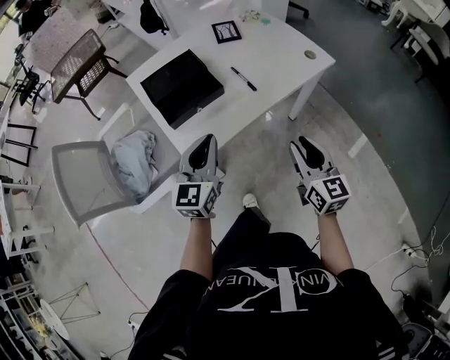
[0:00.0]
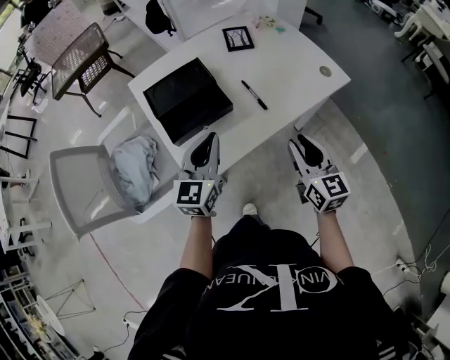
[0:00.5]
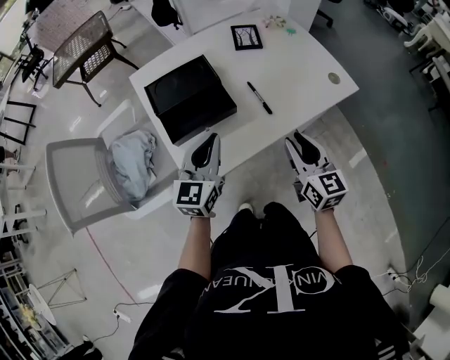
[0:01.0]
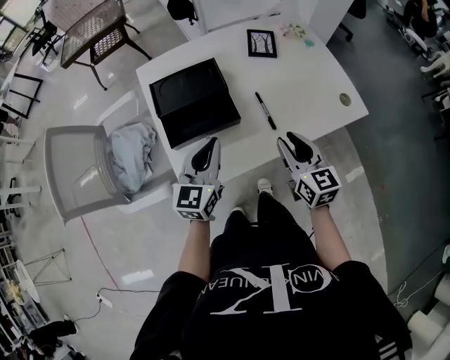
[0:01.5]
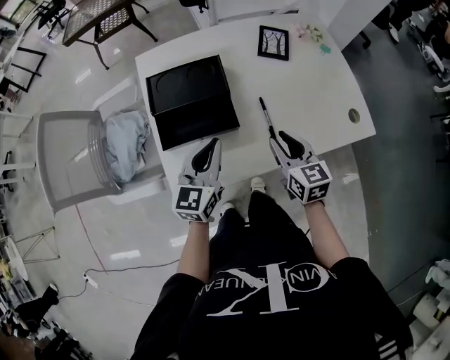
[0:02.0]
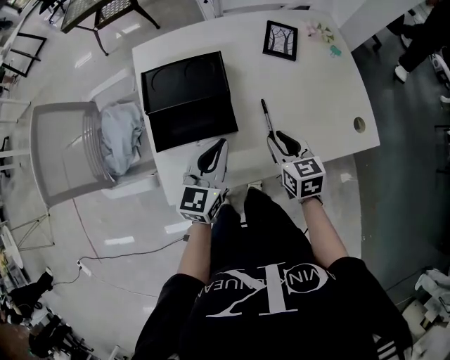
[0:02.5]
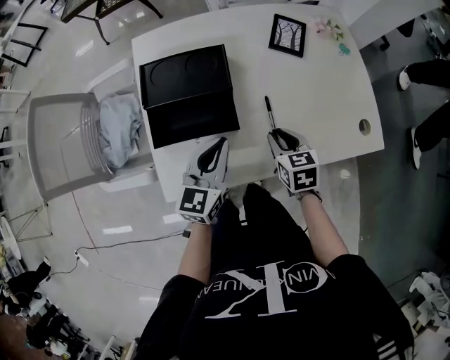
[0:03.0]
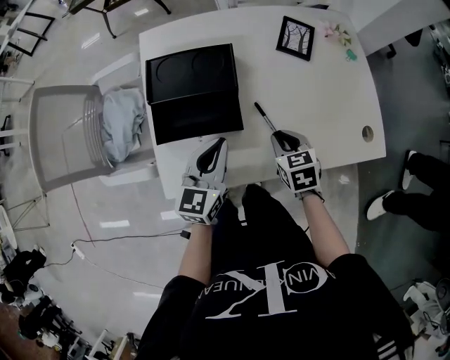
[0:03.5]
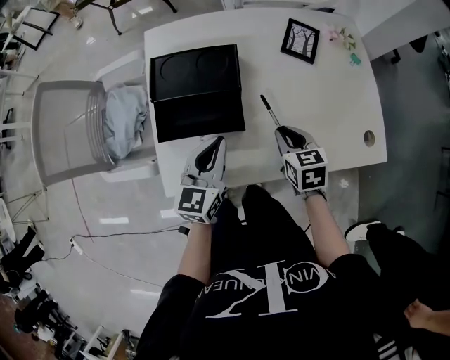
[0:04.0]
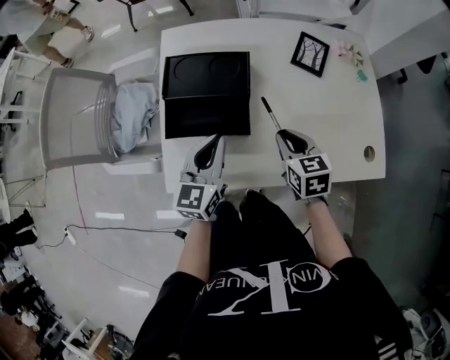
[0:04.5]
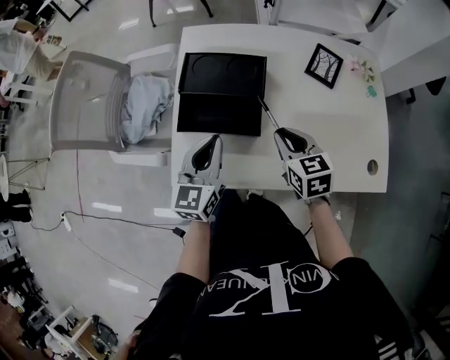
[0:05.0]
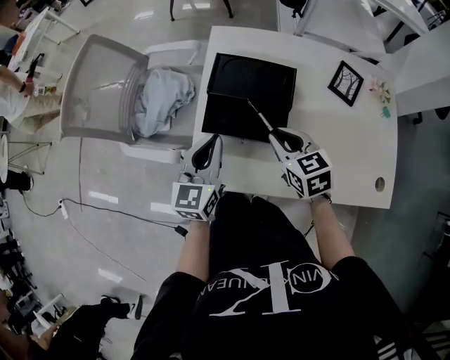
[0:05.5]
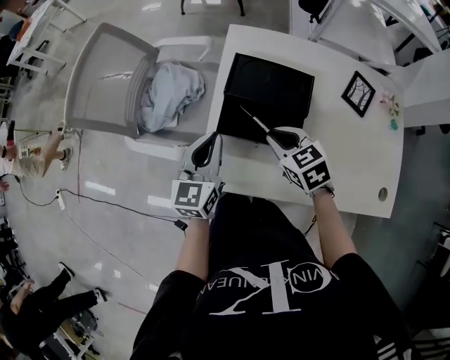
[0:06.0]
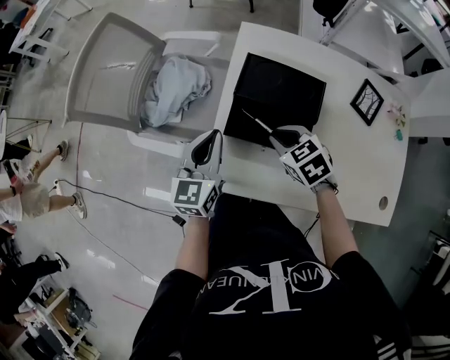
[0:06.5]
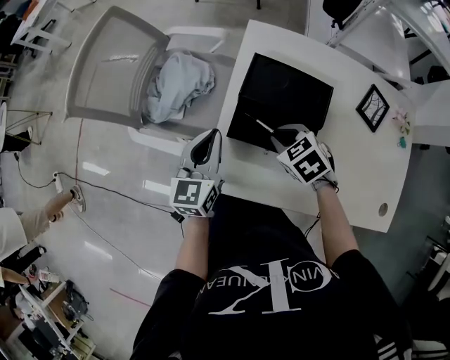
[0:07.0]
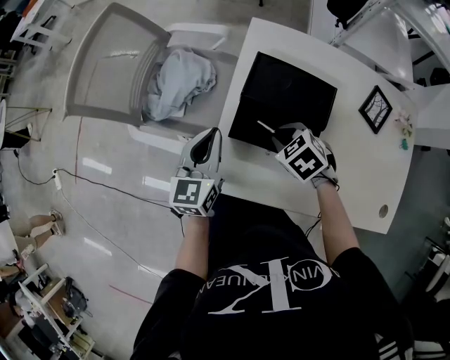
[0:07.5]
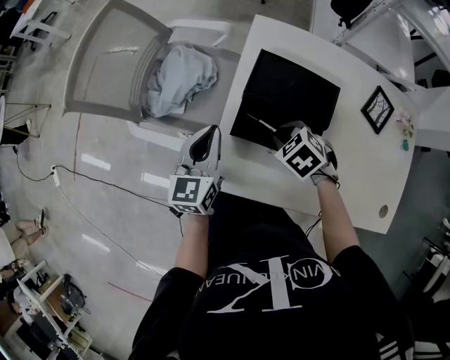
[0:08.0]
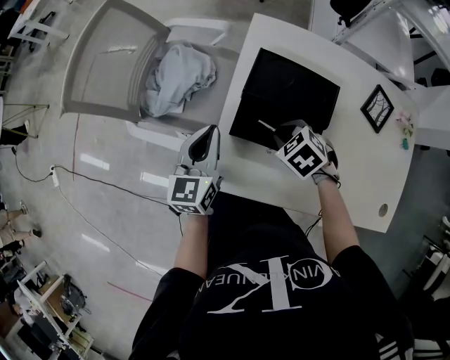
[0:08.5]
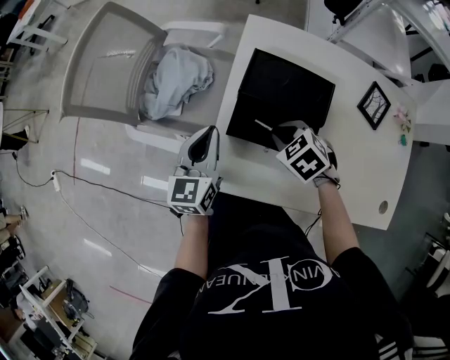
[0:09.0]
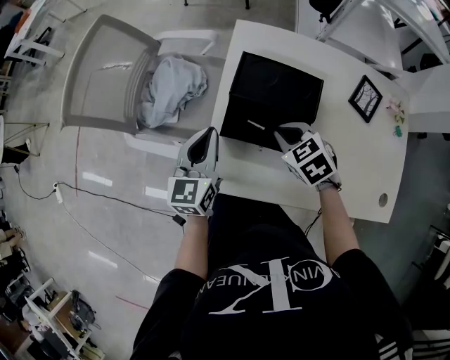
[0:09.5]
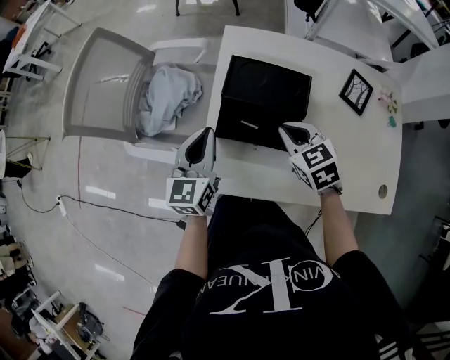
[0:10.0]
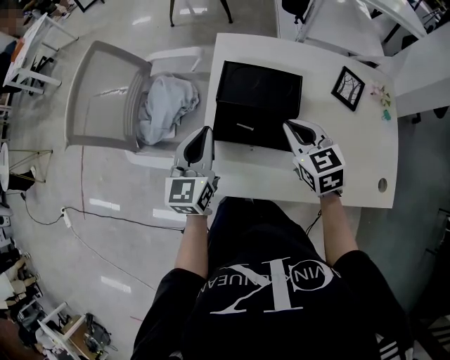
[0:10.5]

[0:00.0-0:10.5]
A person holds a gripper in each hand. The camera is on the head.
0.0 to 2.0 s: The left gripper shifts approximately 15 cm forward, while the right gripper travels forward by approximately 25 cm, and turns by about 30 degrees.
2.0 to 4.0 s: The right gripper heads downward and forward, covering approximately 10 cm, and rotates about 20 degrees.
4.0 to 6.5 s: The right gripper shifts by roughly 20 cm, and changes its angle by some 50 degrees; the left gripper changes place by some 20 cm, and turns by roughly 20 degrees.
6.5 to 8.5 s: The grippers stay close to where they were, moving slightly.
8.5 to 10.5 s: The right gripper travels upward and to the right by some 15 cm, and angles its fingers upward, by roughly 30 degrees. Meanwhile the left gripper moves upward, some 5 cm.

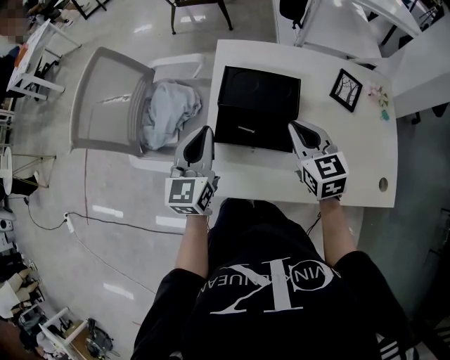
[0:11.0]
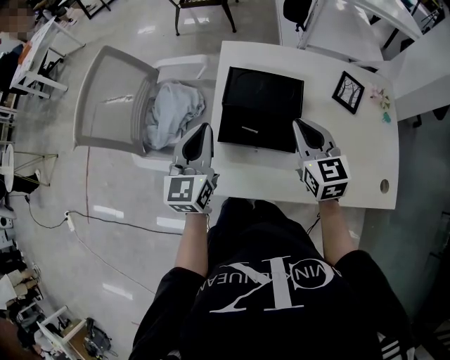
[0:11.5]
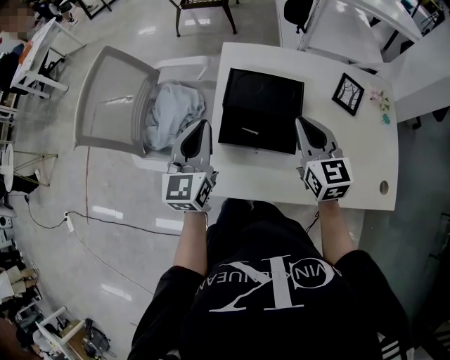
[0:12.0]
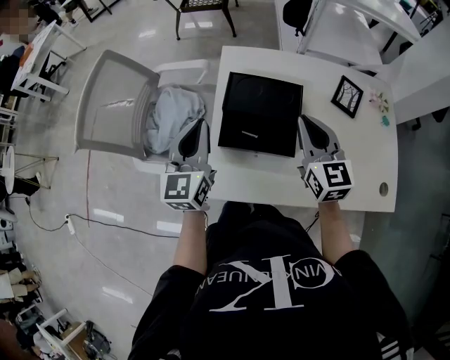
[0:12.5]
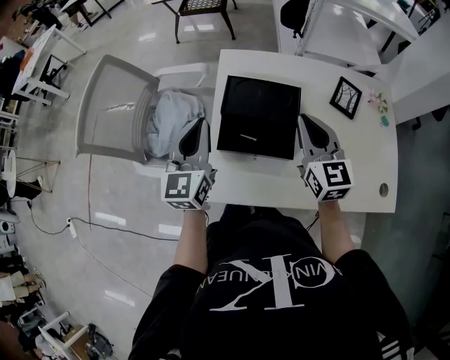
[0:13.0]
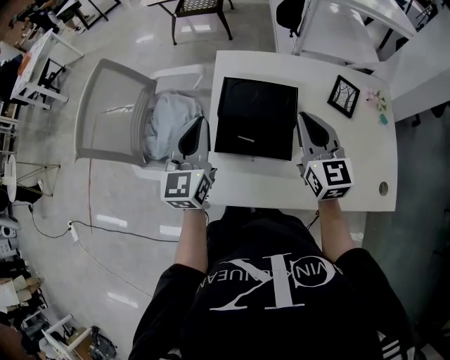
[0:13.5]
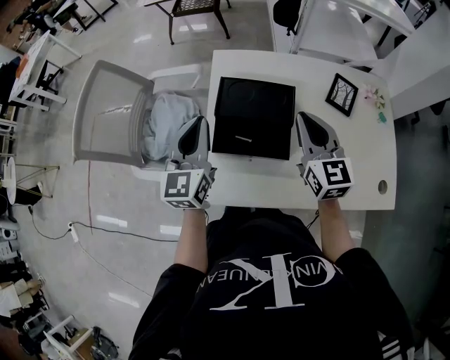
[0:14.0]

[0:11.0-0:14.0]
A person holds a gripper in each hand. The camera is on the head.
11.0 to 12.5 s: The right gripper shifts by approximately 5 cm.
12.5 to 14.0 s: There are only small adjustments of the grippers.

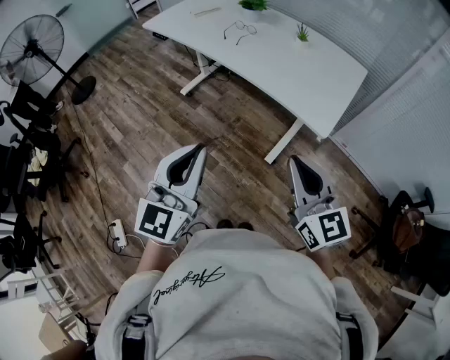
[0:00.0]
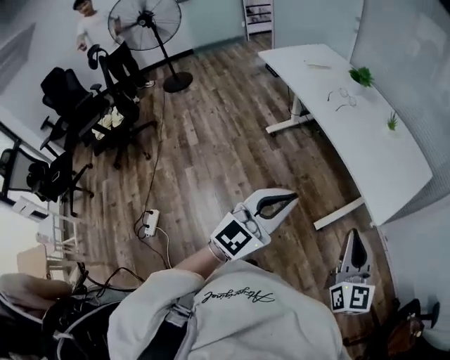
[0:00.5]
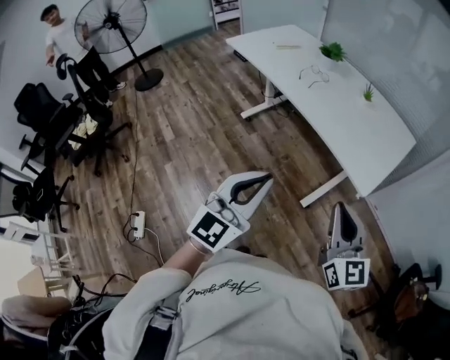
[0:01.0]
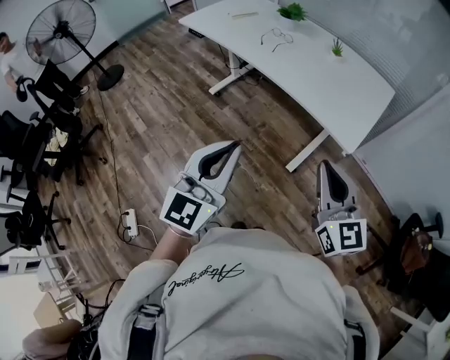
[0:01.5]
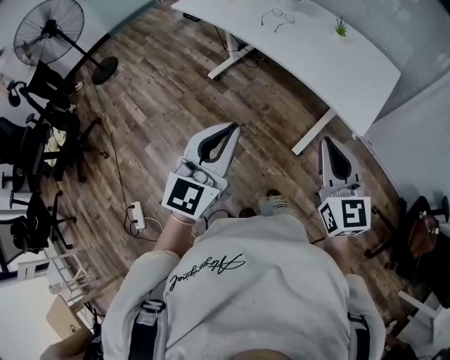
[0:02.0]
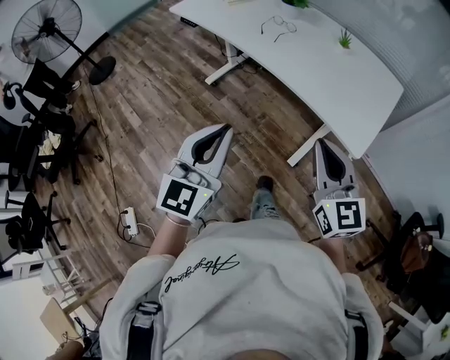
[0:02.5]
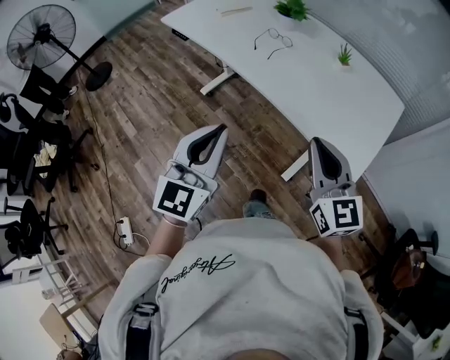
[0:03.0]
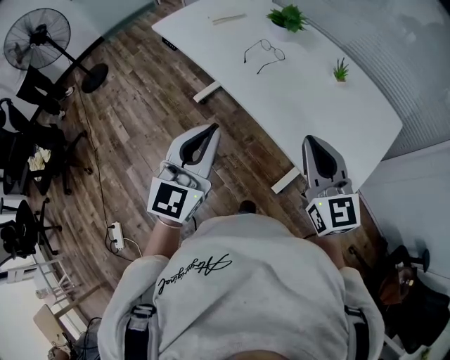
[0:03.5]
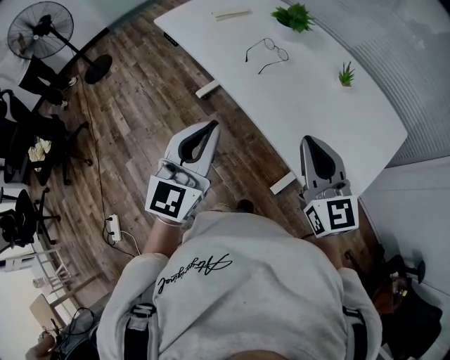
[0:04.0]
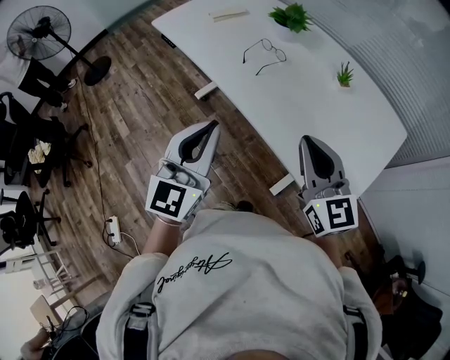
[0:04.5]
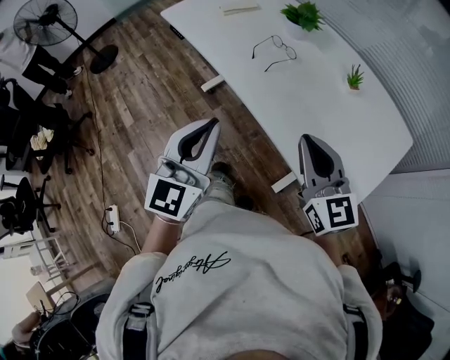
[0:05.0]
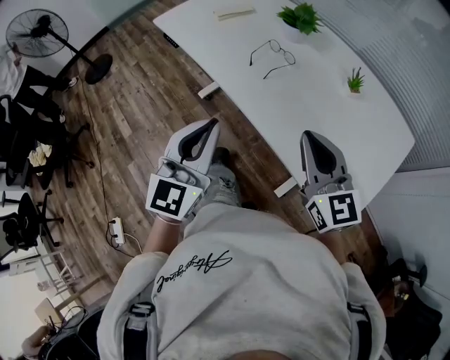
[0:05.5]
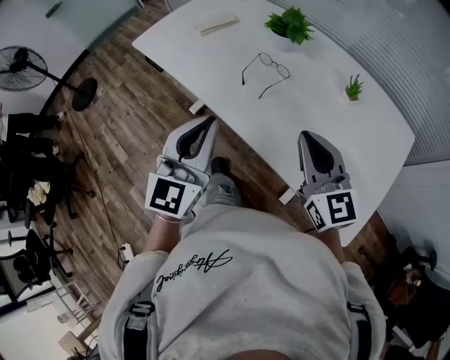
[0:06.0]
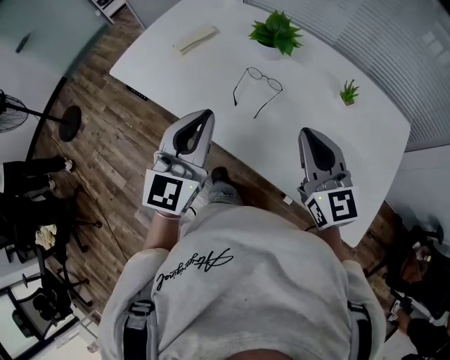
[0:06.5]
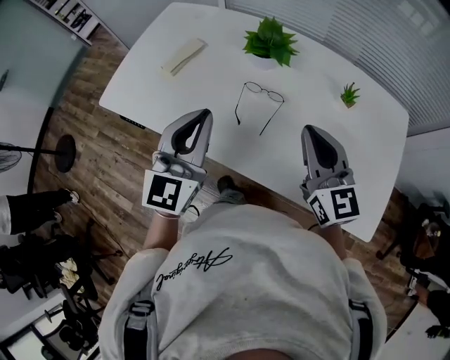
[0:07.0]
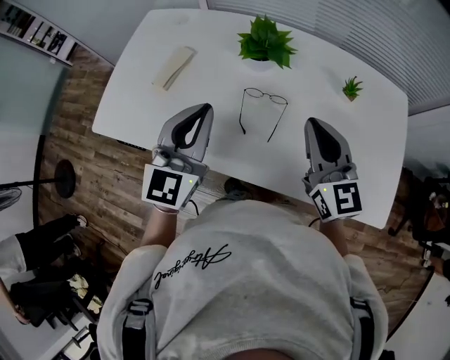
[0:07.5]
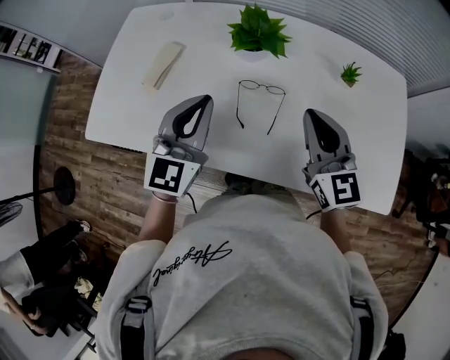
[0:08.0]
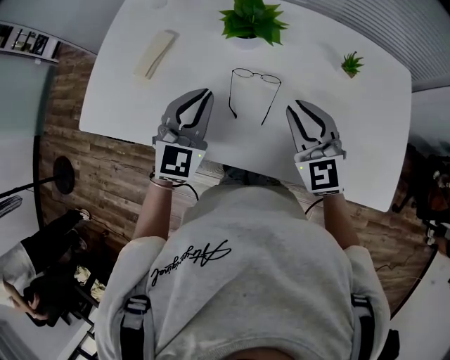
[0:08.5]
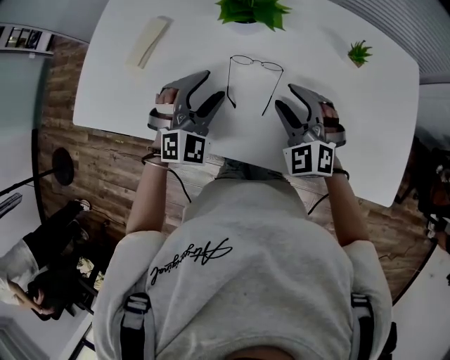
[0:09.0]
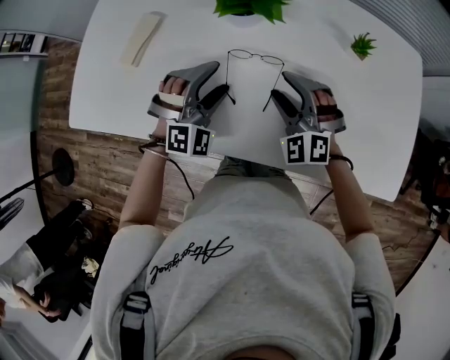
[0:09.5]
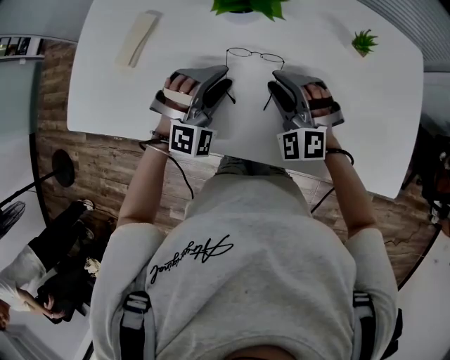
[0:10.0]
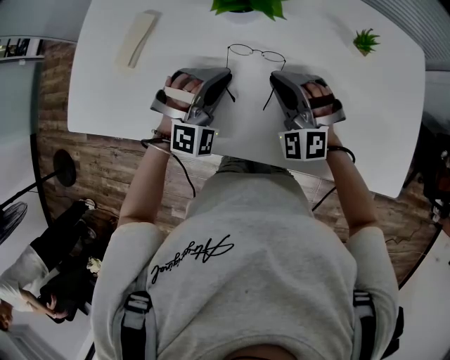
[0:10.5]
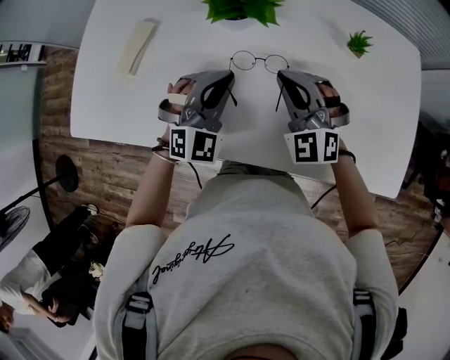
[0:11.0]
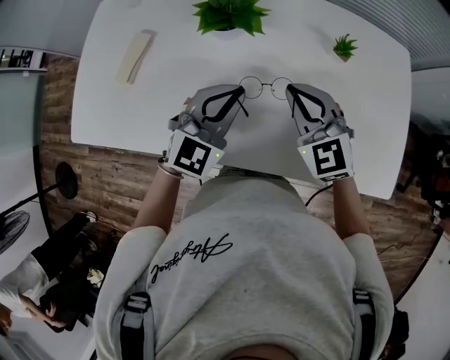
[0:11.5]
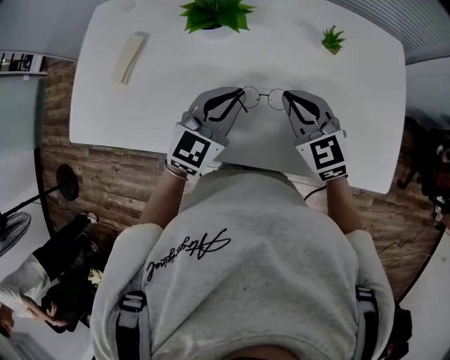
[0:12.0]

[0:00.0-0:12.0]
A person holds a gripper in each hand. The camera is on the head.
0.0 to 2.0 s: There are only small adjustments of the grippers.
2.0 to 4.0 s: The two grippers go roughly 25 cm forward.
4.0 to 6.0 s: The two grippers go some 15 cm forward.
6.0 to 8.0 s: The right gripper shifts by roughly 15 cm, and changes its angle by roughly 30 degrees, while the left gripper shifts by about 25 cm, and turns by about 30 degrees.
8.0 to 10.0 s: The grippers both shift downward by some 15 cm. The right gripper twists about 60 degrees counterclockwise, seen from behind, and opens up. Meanwhile the left gripper rotates around the line of its fingers by approximately 60 degrees, clockwise from behind, and opens its fingers.
10.0 to 12.0 s: Both grippers travel together to the right and upward, roughly 10 cm. The left gripper rotates around the line of its fingers by approximately 60 degrees, counterclockwise from behind, and closes up, while the right gripper rolls clockwise, seen from behind, by approximately 50 degrees, and closes up.

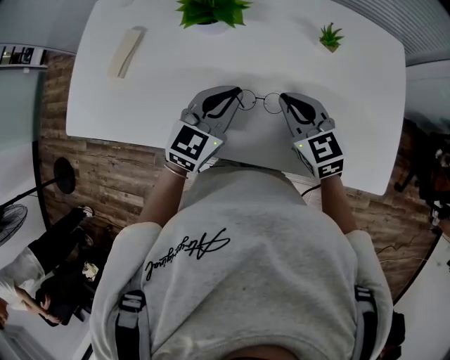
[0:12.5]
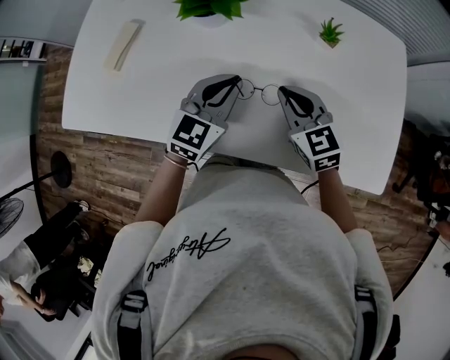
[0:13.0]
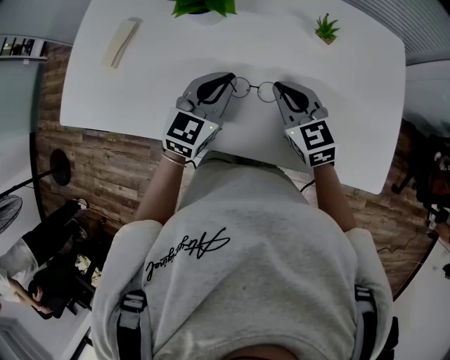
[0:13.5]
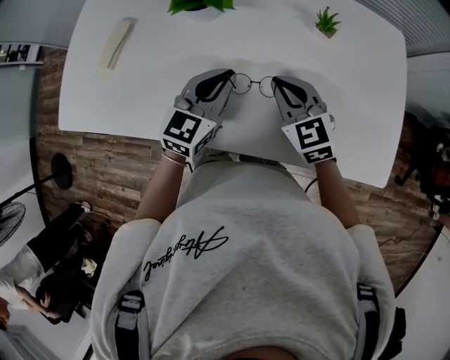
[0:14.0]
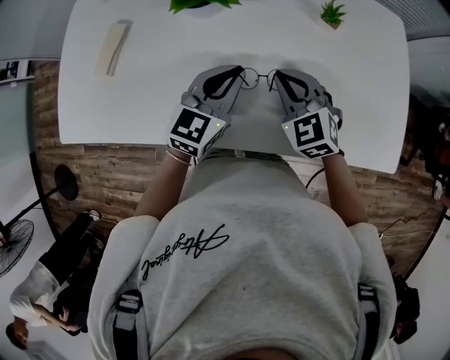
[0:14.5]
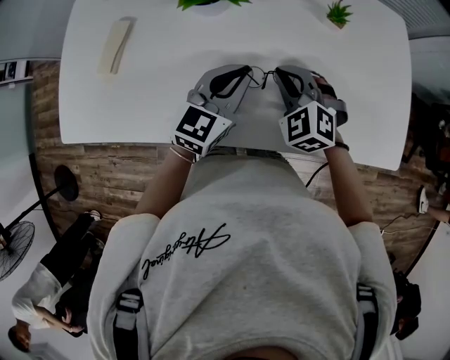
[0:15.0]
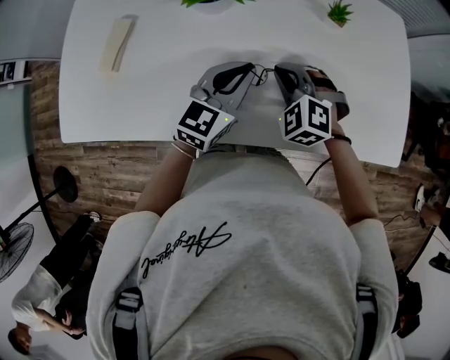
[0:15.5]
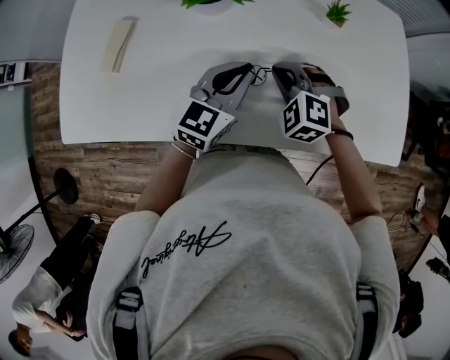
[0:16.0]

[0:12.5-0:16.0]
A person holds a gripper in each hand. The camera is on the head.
12.5 to 14.5 s: The right gripper changes its angle by roughly 20 degrees.
14.5 to 16.0 s: The right gripper turns by some 30 degrees.
